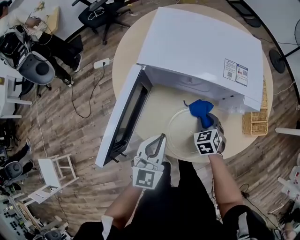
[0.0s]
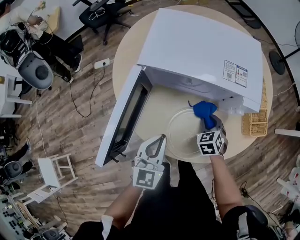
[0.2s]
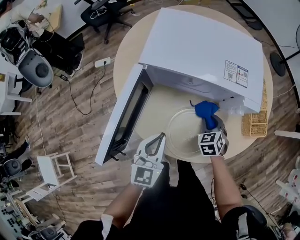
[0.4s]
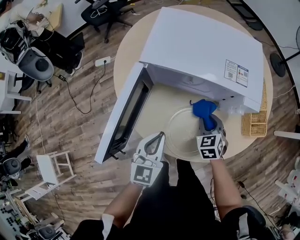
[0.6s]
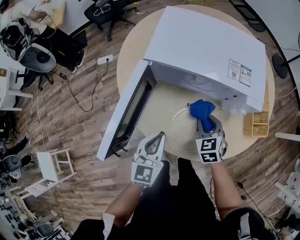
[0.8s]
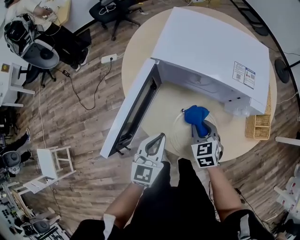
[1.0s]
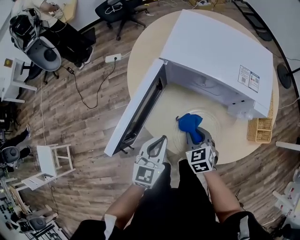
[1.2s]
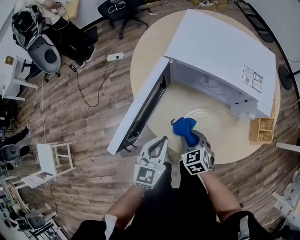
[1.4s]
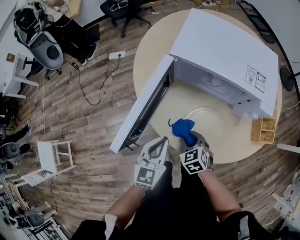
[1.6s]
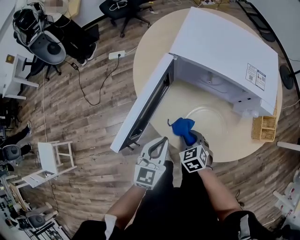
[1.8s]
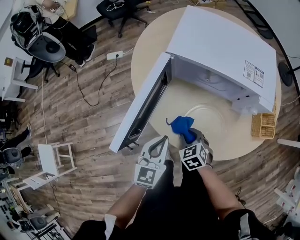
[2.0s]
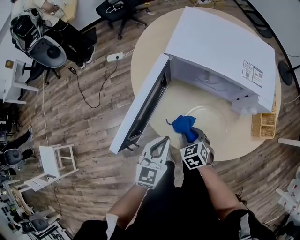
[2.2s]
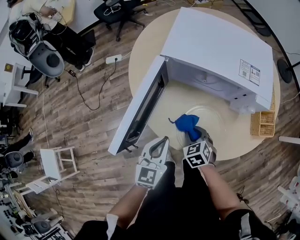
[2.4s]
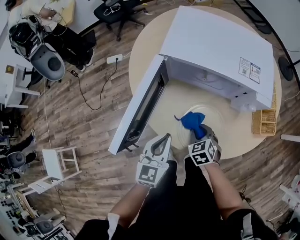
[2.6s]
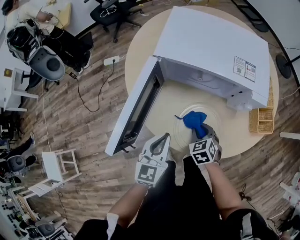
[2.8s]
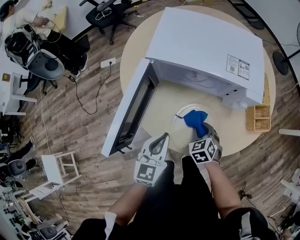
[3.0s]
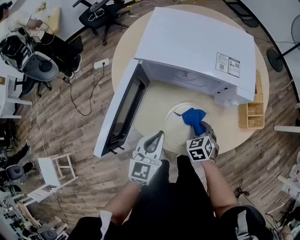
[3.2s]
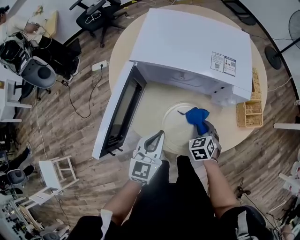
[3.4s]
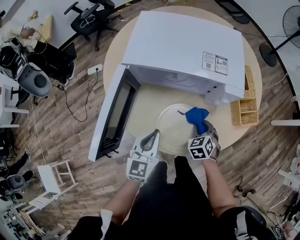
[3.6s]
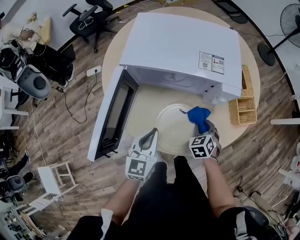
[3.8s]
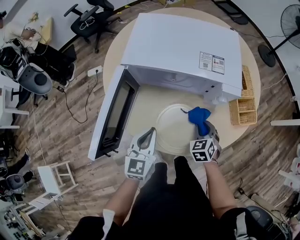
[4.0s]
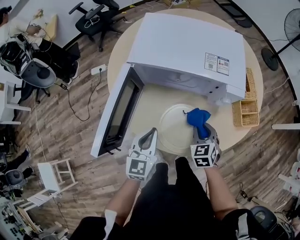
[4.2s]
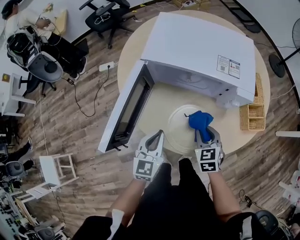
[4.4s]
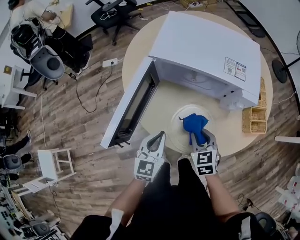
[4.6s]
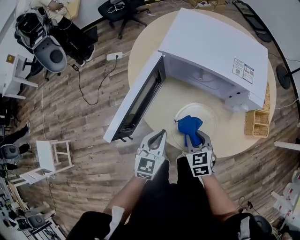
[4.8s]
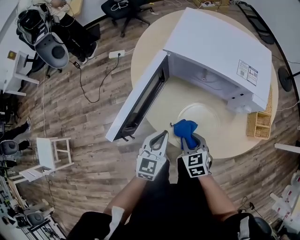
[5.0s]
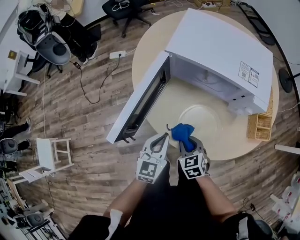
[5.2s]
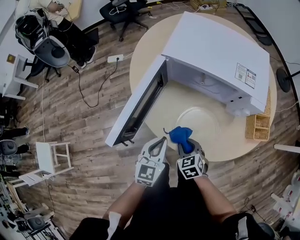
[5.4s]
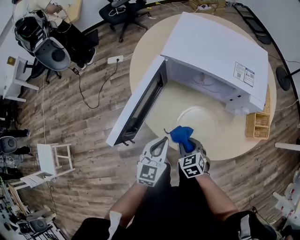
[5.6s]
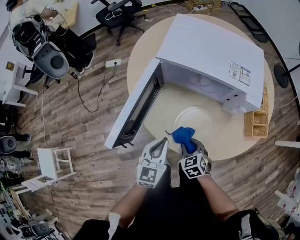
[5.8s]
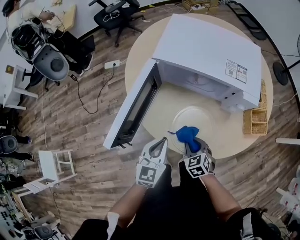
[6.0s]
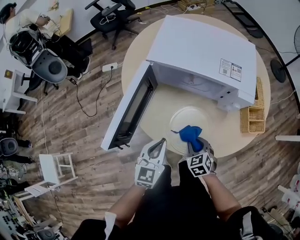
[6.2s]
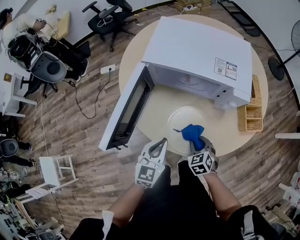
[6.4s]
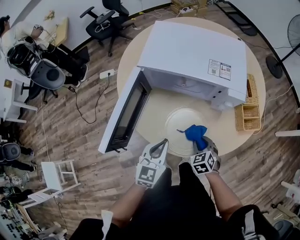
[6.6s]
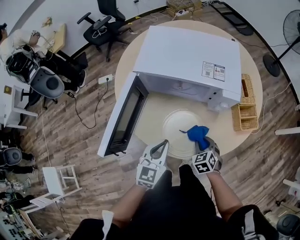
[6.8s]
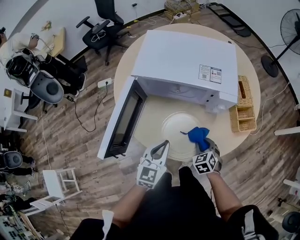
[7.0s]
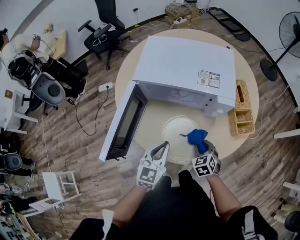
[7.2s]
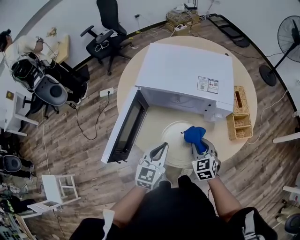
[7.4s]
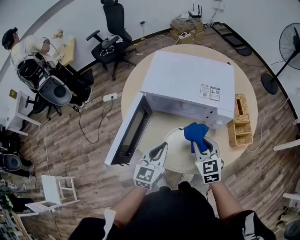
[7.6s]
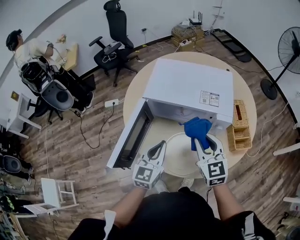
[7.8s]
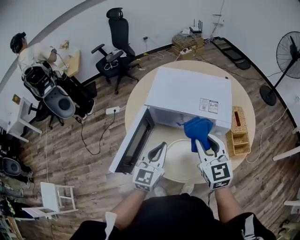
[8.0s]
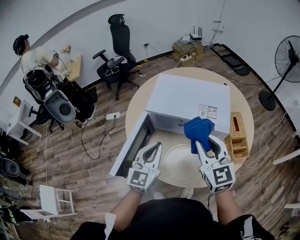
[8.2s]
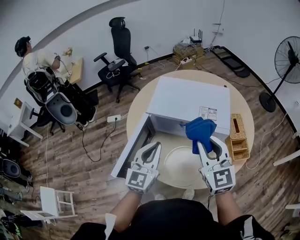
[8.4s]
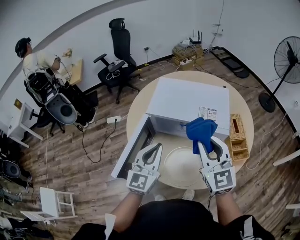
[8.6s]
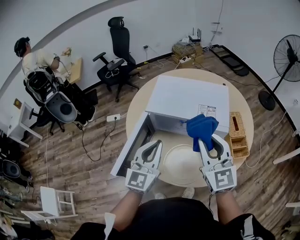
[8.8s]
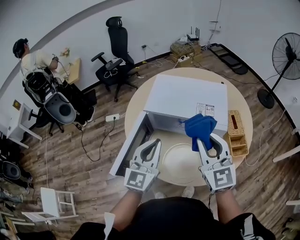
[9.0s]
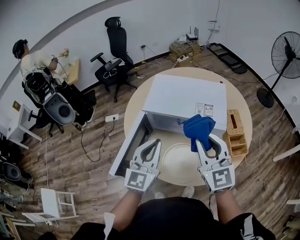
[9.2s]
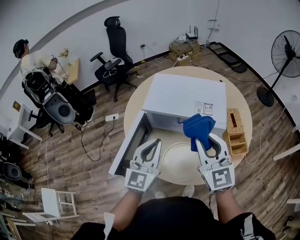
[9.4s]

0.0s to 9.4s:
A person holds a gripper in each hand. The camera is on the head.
0.0s to 1.6s: The left gripper shifts approximately 10 cm to the left and backward; the right gripper moves to the left and backward, some 20 cm, and changes its angle by some 20 degrees.
1.6s to 3.2s: The left gripper heads to the right, covering some 5 cm. The right gripper is displaced to the right by approximately 15 cm.
3.2s to 4.8s: The right gripper travels to the left, upward and backward by approximately 10 cm. The left gripper moves roughly 5 cm.
4.8s to 6.2s: The right gripper heads downward, covering approximately 5 cm.
6.2s to 7.8s: The left gripper moves upward and forward, about 15 cm, while the right gripper goes approximately 25 cm upward, and tips its fingers upward by some 40 degrees.
7.8s to 9.4s: Both grippers travel together upward, approximately 10 cm.

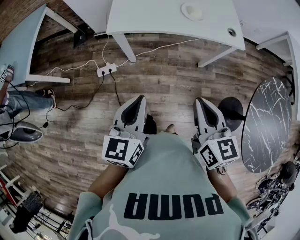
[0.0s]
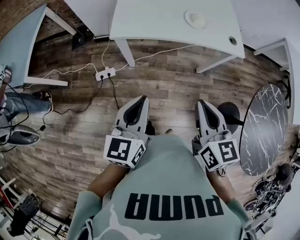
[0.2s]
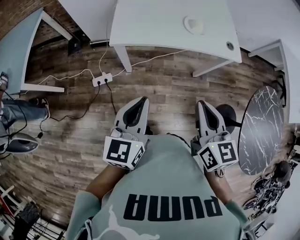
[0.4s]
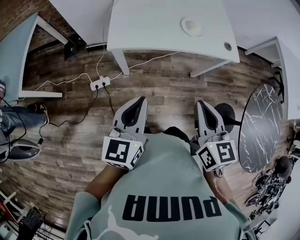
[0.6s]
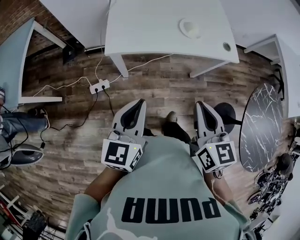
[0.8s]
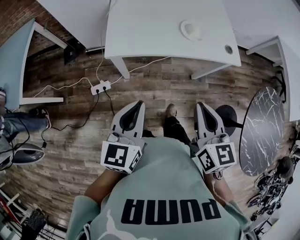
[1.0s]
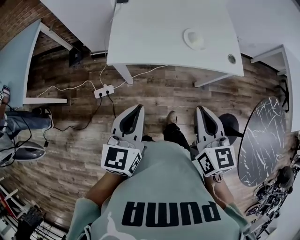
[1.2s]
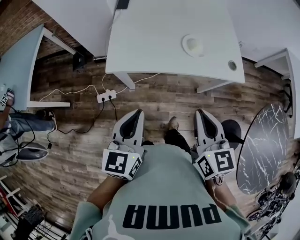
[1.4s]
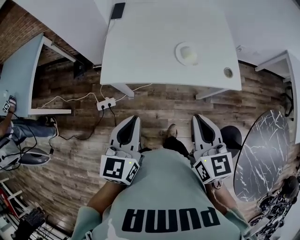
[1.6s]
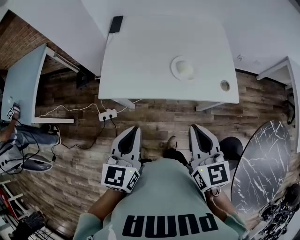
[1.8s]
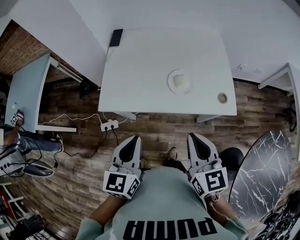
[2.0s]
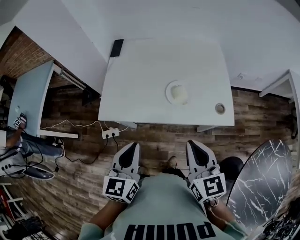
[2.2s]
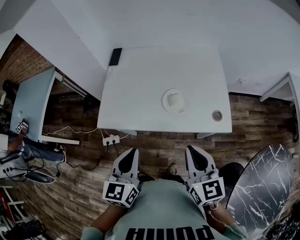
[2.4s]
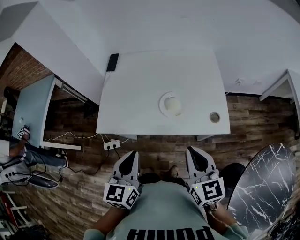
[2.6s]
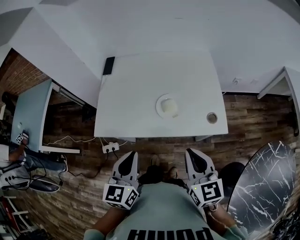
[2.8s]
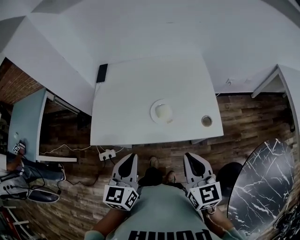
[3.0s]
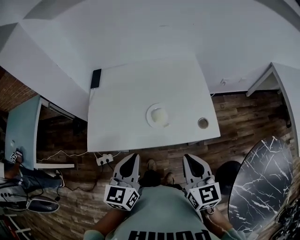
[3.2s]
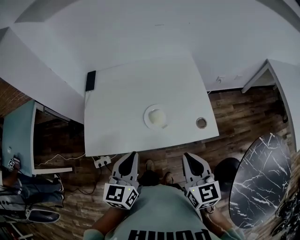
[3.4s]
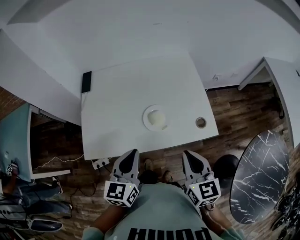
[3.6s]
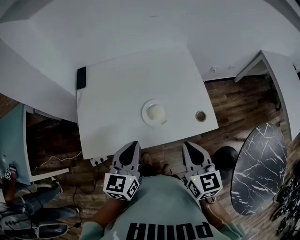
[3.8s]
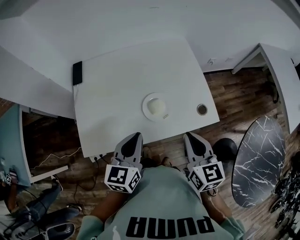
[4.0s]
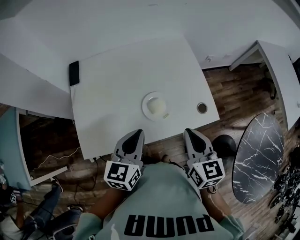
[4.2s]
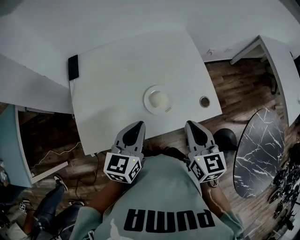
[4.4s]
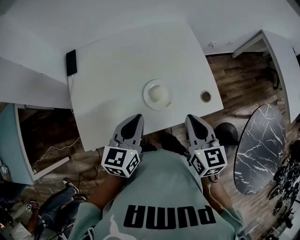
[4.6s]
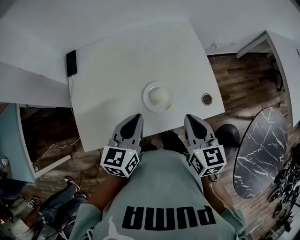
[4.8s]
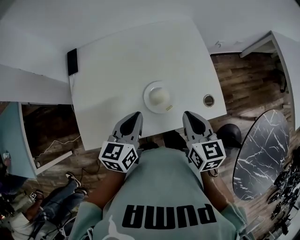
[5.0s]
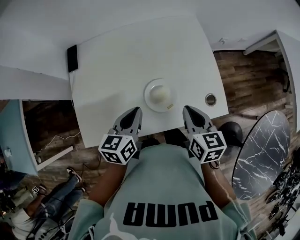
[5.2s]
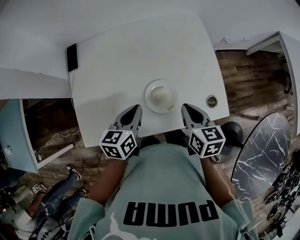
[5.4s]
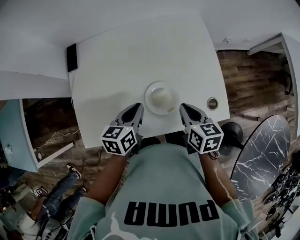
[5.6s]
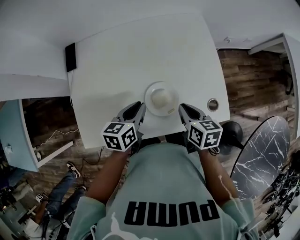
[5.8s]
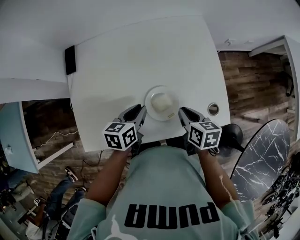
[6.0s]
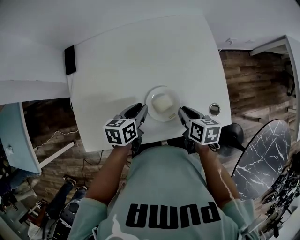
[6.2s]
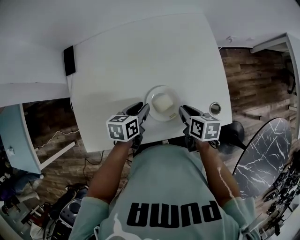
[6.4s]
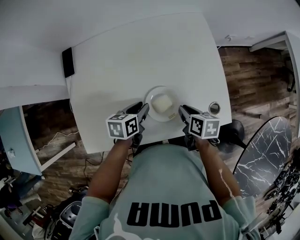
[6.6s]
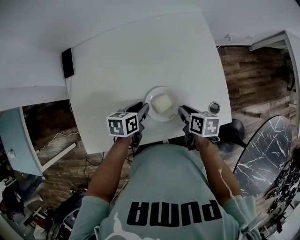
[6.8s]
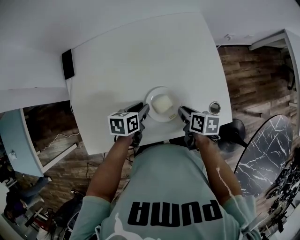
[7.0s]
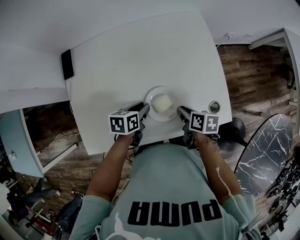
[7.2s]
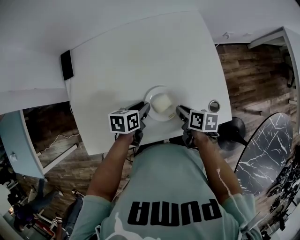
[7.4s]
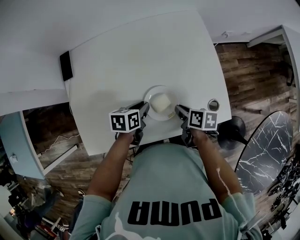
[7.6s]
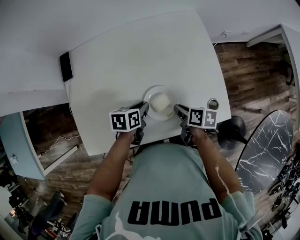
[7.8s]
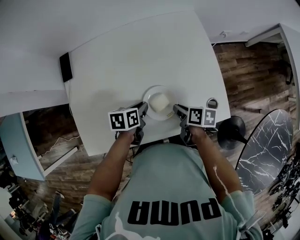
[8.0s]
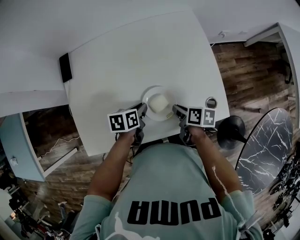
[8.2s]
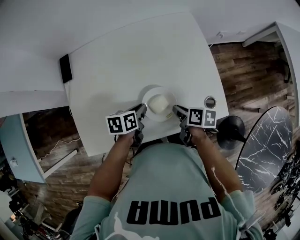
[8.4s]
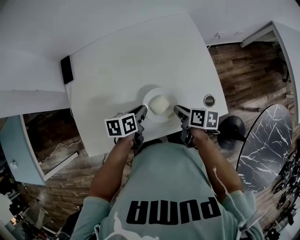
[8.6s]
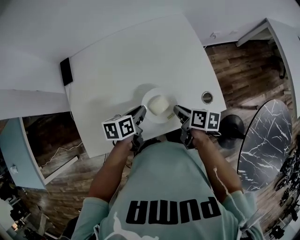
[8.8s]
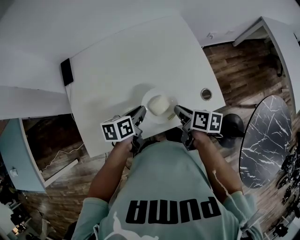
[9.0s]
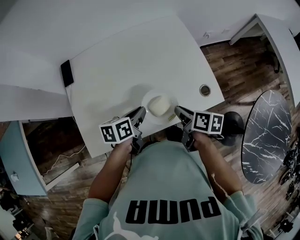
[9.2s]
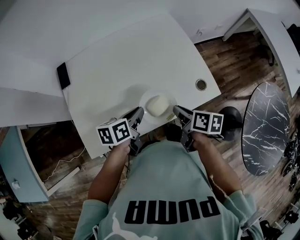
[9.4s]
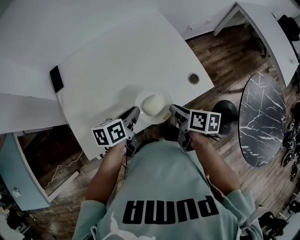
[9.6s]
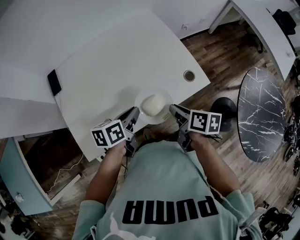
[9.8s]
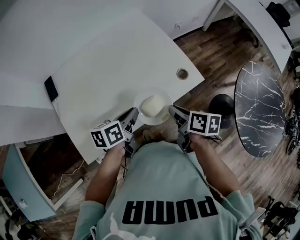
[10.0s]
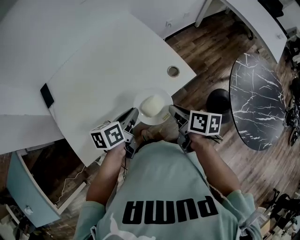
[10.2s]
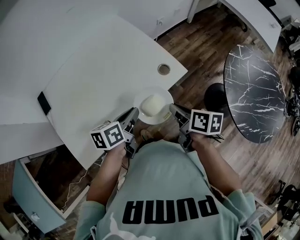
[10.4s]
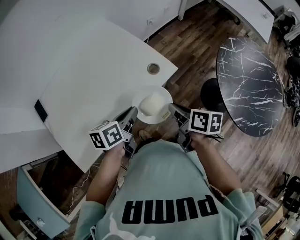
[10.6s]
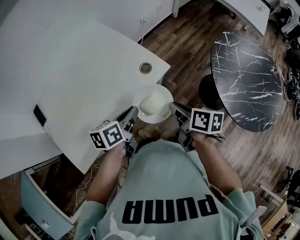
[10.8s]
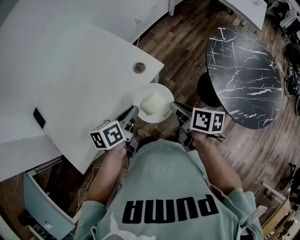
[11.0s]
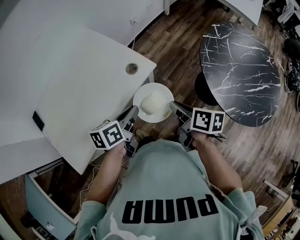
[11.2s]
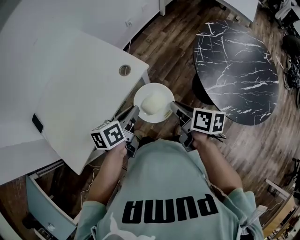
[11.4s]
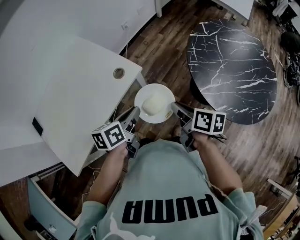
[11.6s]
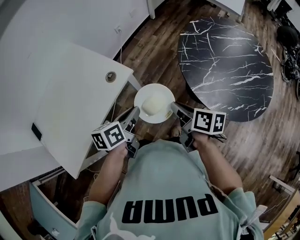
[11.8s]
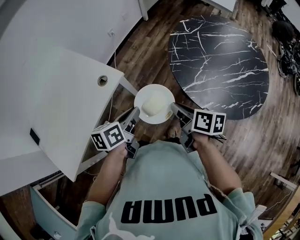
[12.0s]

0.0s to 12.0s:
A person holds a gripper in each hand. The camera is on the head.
0.0s to 1.6s: Both grippers move forward, roughly 20 cm.
1.6s to 3.0s: The grippers both shift to the right and forward by approximately 15 cm.
3.0s to 4.4s: The right gripper moves forward and to the left, approximately 10 cm, while the left gripper is displaced forward by roughly 15 cm, and turns by roughly 20 degrees.
4.4s to 6.0s: The grippers both shift downward and forward by some 20 cm. The left gripper turns by approximately 30 degrees. Meanwhile the right gripper swivels some 40 degrees.
6.0s to 7.6s: The grippers both shift downward by some 5 cm. The right gripper swivels approximately 20 degrees.
7.6s to 9.0s: The grippers both shift upward by about 10 cm.
9.0s to 10.4s: The grippers both shift to the right, backward and upward by about 15 cm. The right gripper changes its angle by approximately 20 degrees.
10.4s to 12.0s: The two grippers go roughly 30 cm to the right.

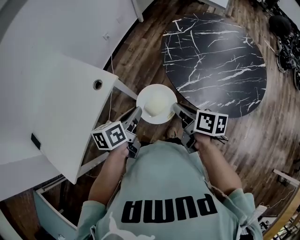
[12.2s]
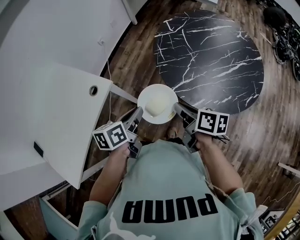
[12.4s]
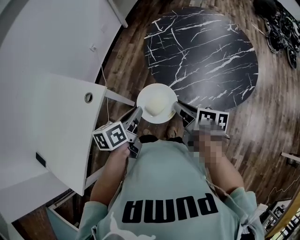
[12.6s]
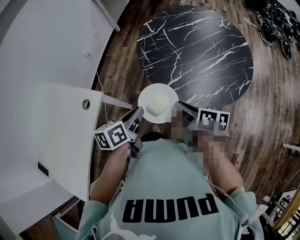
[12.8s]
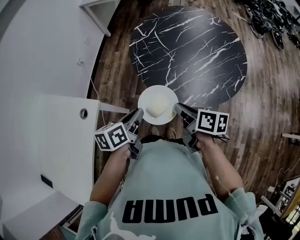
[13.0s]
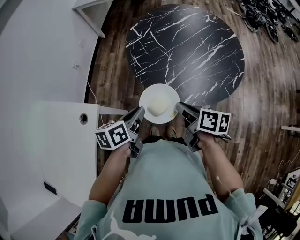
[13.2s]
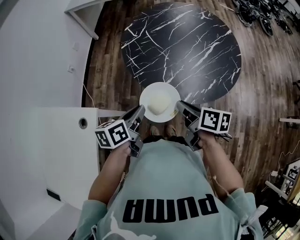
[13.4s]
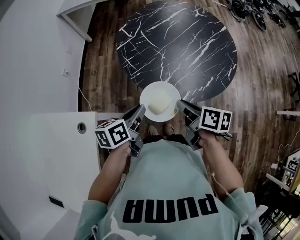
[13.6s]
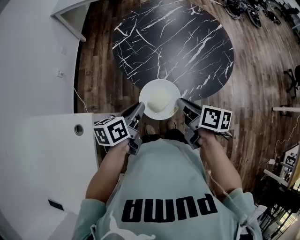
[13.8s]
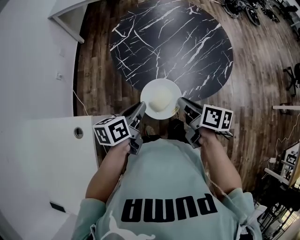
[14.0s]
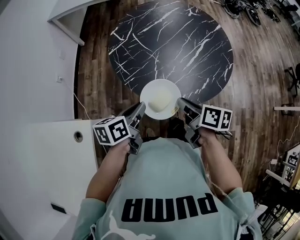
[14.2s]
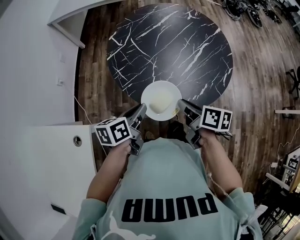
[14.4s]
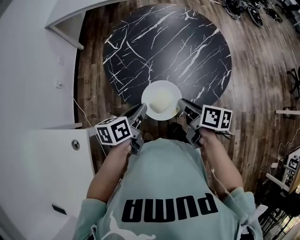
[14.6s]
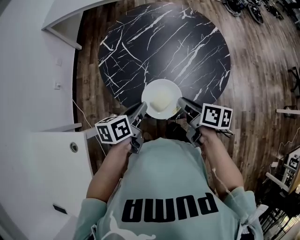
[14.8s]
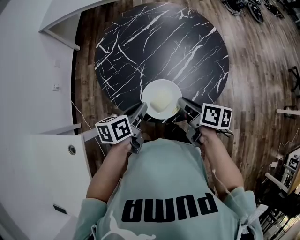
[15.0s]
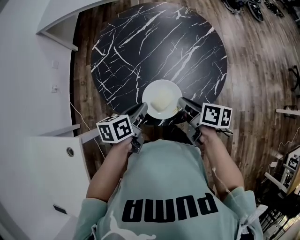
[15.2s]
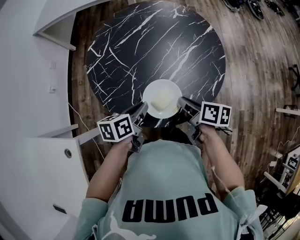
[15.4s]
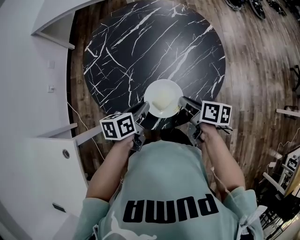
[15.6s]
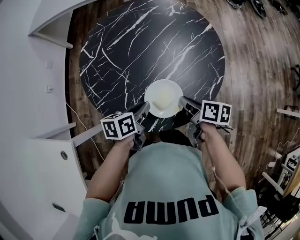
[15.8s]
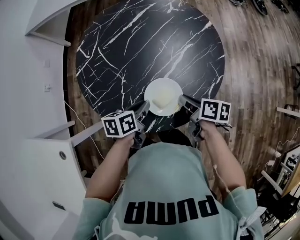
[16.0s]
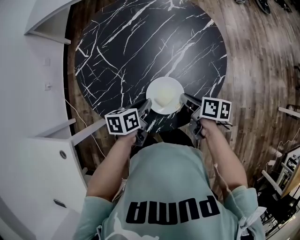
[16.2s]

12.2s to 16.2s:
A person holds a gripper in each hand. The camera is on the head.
12.2s to 13.6s: The right gripper ends up about 10 cm from where it was, and changes its angle by roughly 30 degrees. Meanwhile the left gripper changes place by roughly 10 cm, and rotates approximately 30 degrees.
13.6s to 14.8s: The grippers both shift forward and to the right by roughly 15 cm.
14.8s to 16.2s: The grippers both shift to the right, downward and forward by approximately 20 cm.
